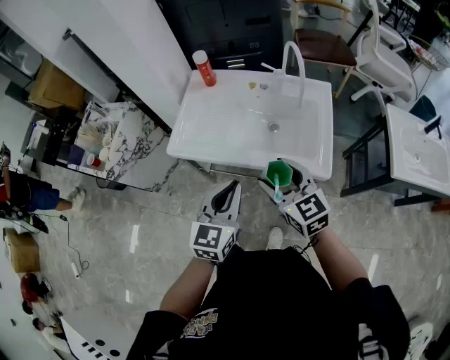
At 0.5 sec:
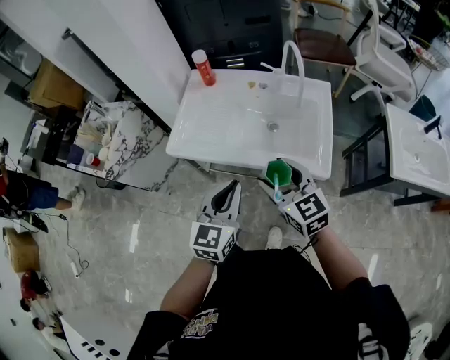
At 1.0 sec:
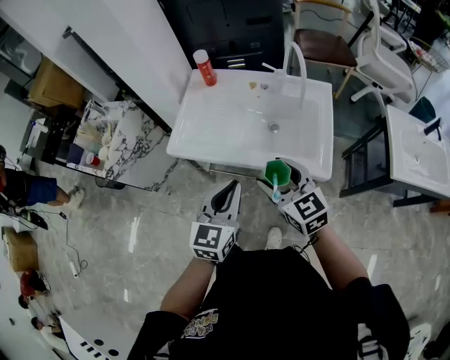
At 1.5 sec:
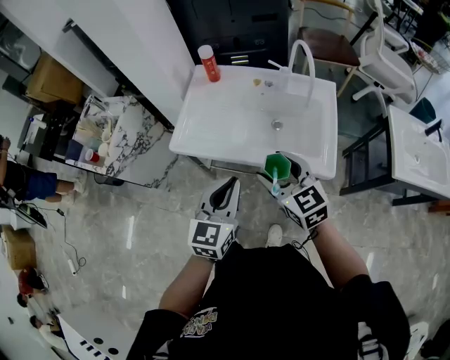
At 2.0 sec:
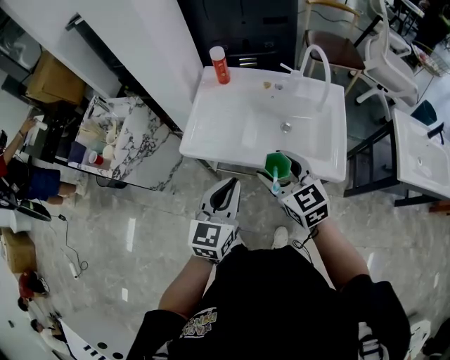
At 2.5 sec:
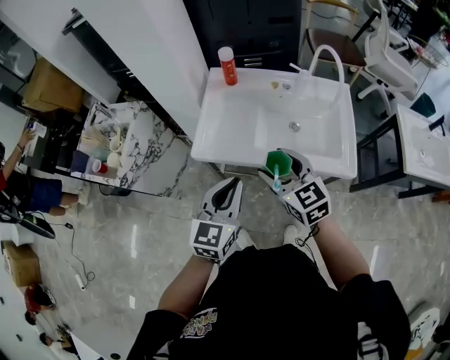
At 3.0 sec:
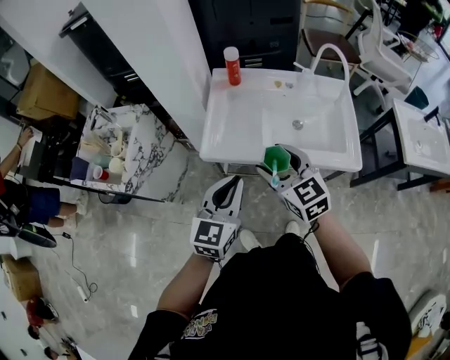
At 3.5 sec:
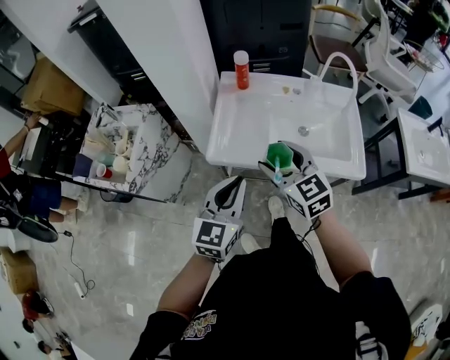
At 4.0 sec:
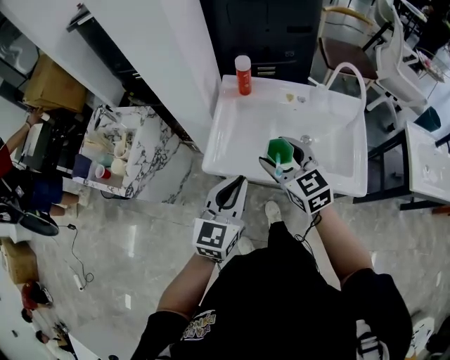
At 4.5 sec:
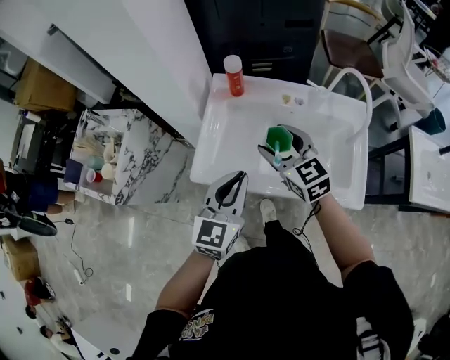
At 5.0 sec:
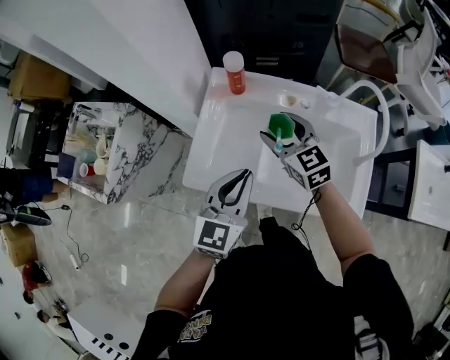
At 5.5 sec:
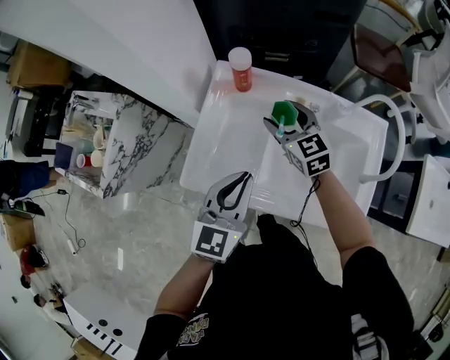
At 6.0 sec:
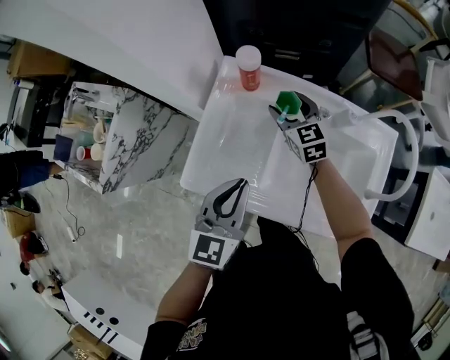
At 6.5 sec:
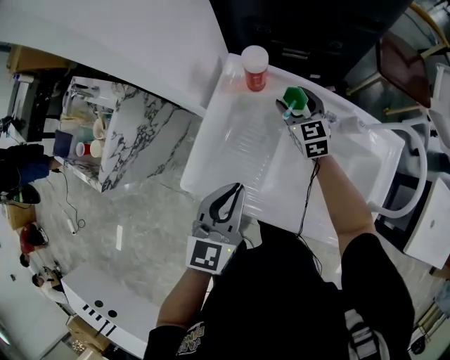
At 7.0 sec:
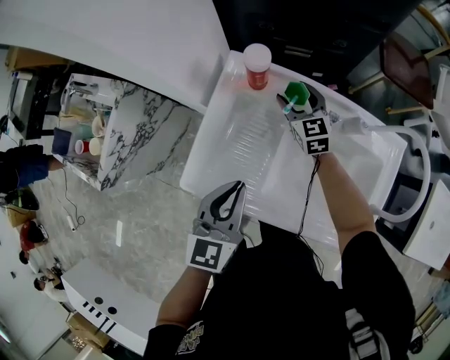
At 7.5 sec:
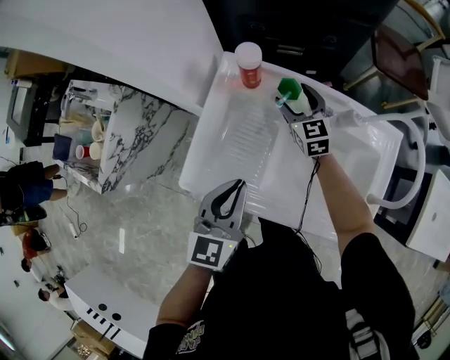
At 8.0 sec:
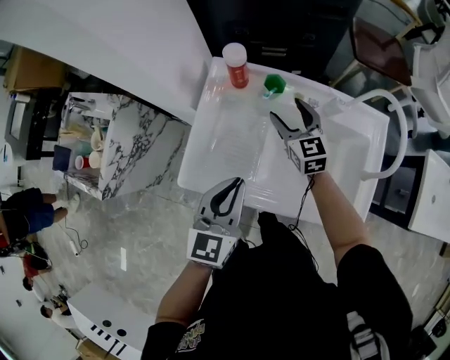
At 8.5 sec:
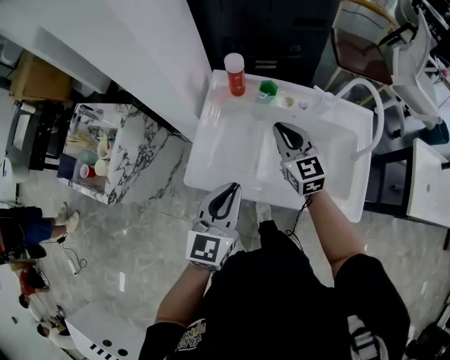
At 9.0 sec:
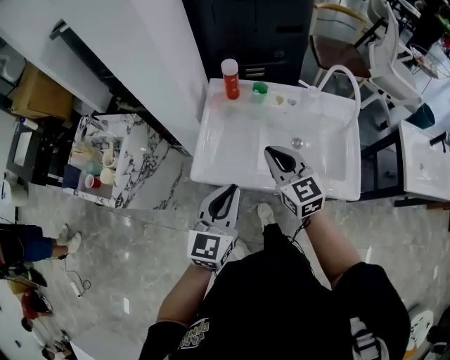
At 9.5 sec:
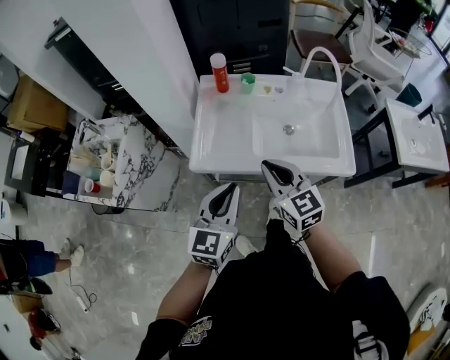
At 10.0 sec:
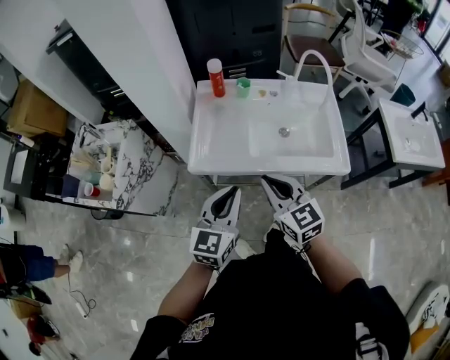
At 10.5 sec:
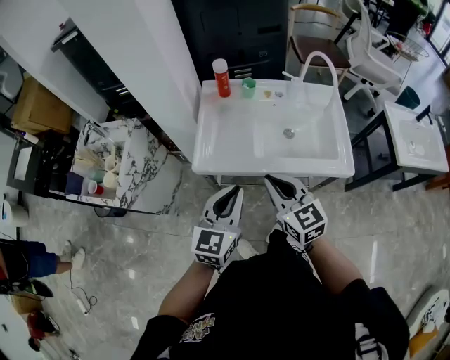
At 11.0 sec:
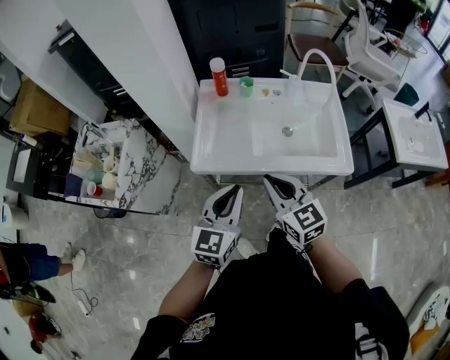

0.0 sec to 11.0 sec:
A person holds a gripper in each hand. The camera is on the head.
0.0 sec to 2.0 sec: The two grippers go roughly 5 cm to the left.
2.0 sec to 3.5 sec: Both grippers move to the left, roughly 10 cm.
3.5 sec to 5.5 sec: The right gripper moves forward, roughly 30 cm. Meanwhile the left gripper goes about 20 cm forward and to the right.
5.5 sec to 7.5 sec: The right gripper heads forward and downward, covering about 10 cm.
7.5 sec to 9.0 sec: The right gripper shifts some 35 cm backward and upward, and closes up. The left gripper moves backward and upward, roughly 15 cm.
9.0 sec to 11.0 sec: The right gripper goes some 15 cm backward; the left gripper heads backward, covering approximately 5 cm.

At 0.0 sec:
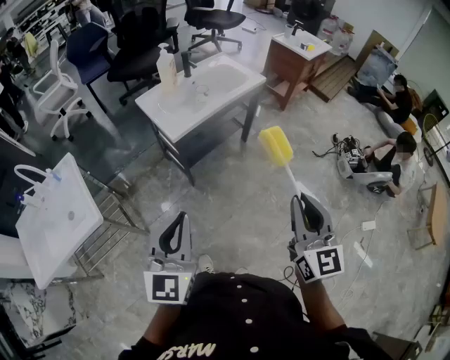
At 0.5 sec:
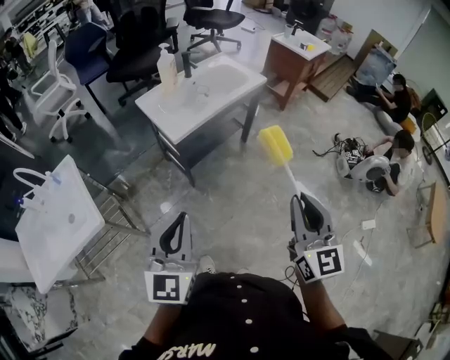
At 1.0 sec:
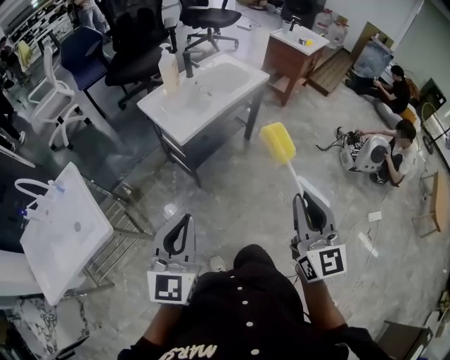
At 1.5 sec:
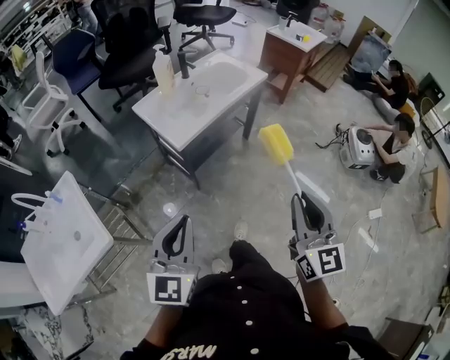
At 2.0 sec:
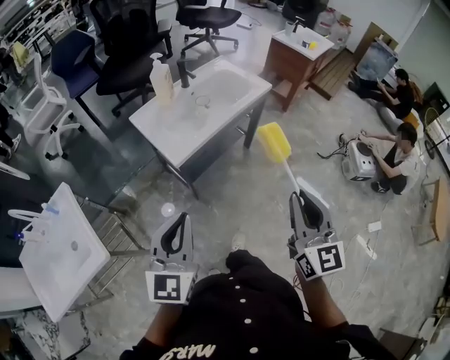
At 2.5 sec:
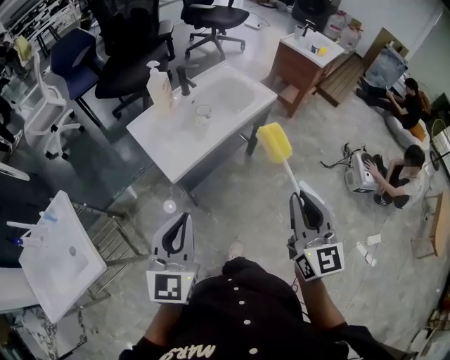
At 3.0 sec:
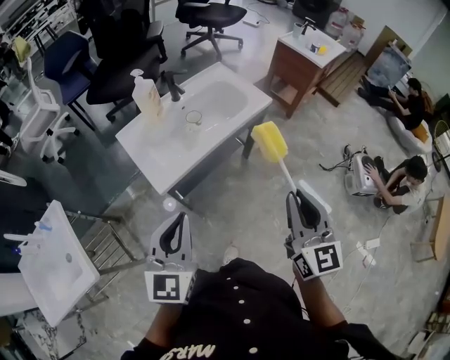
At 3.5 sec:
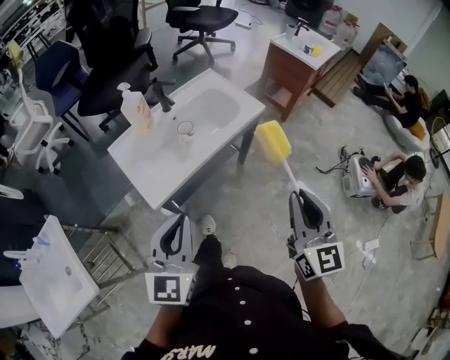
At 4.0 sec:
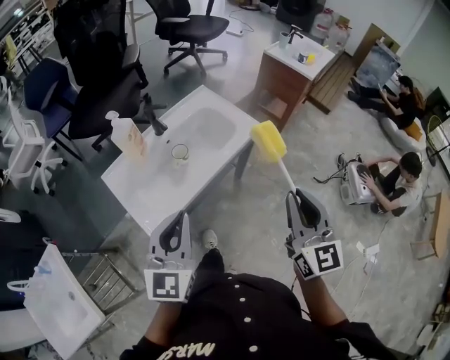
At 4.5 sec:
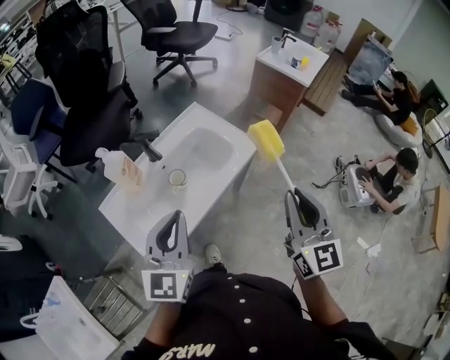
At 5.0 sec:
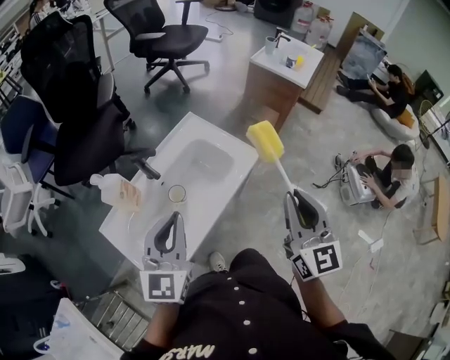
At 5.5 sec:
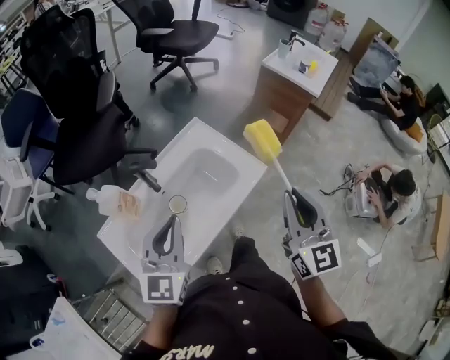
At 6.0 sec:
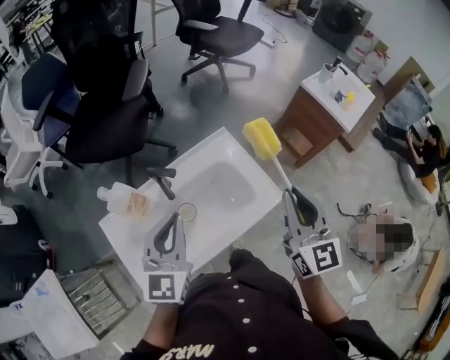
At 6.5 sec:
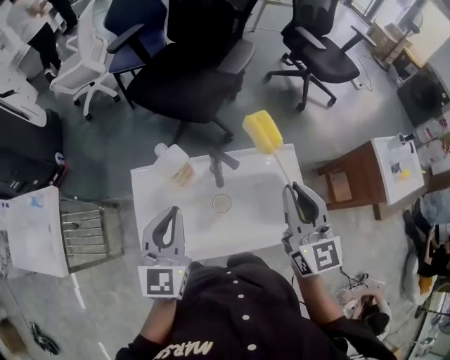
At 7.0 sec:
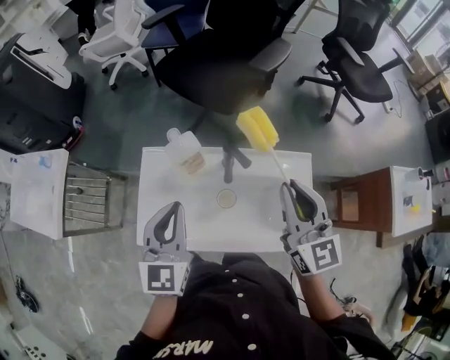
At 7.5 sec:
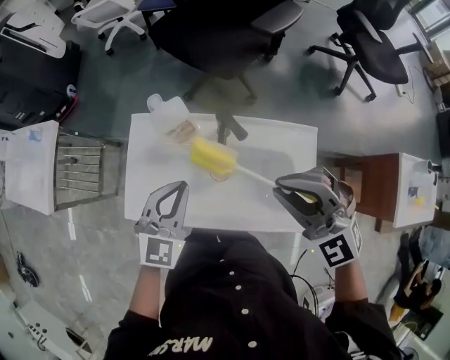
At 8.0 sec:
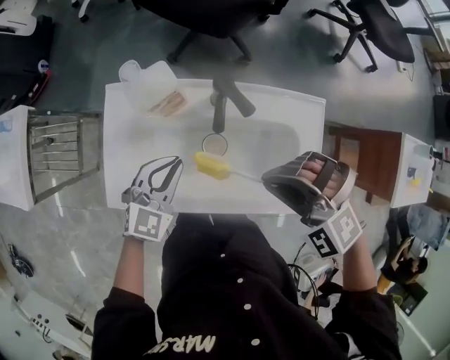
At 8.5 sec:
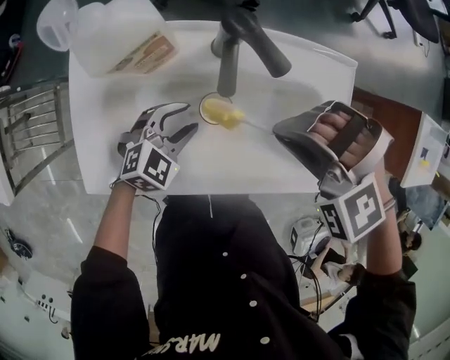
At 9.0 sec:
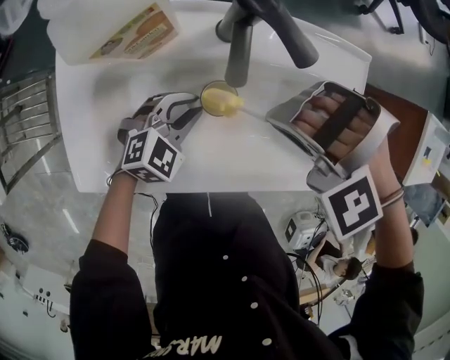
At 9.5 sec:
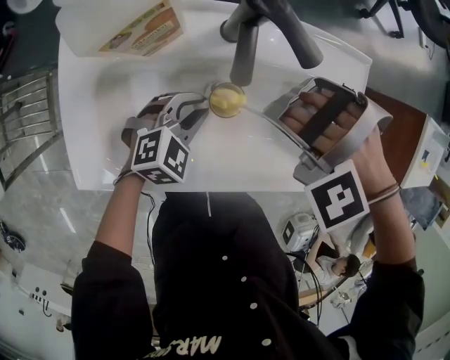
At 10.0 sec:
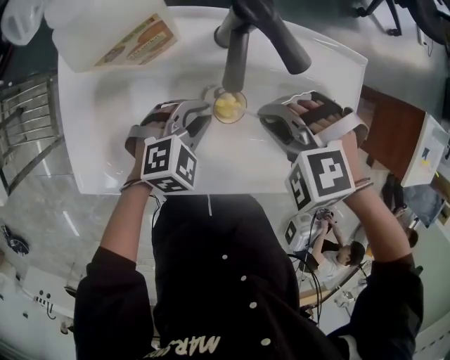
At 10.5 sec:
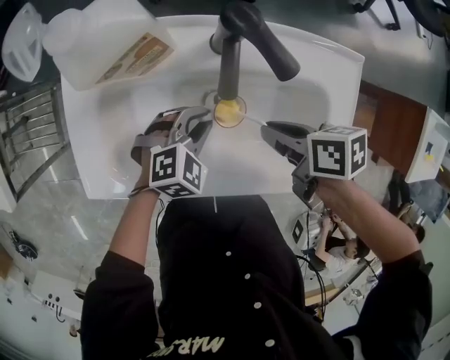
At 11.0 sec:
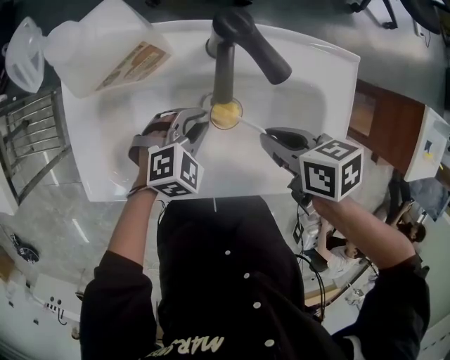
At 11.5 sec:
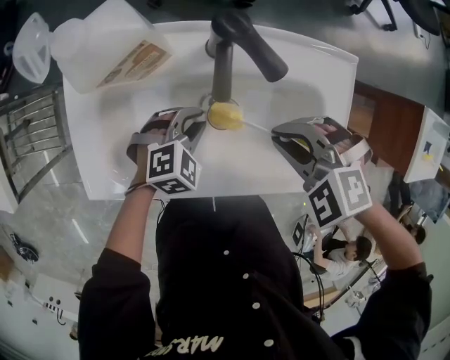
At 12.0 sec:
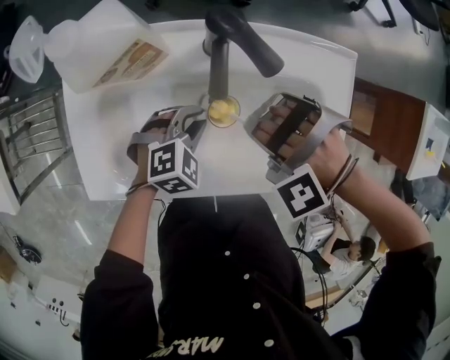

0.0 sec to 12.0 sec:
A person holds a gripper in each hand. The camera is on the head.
0.0 sec to 2.0 sec: The grippers both shift forward by roughly 15 cm.
2.0 sec to 4.0 sec: The grippers both shift forward by roughly 30 cm.
4.0 sec to 6.0 sec: The two grippers go roughly 30 cm forward.
6.0 sec to 8.0 sec: The left gripper heads downward, covering about 20 cm, and rotates some 30 degrees. Meanwhile the right gripper changes place by some 25 cm, and angles its fingers downward, by some 50 degrees.
8.0 sec to 10.0 sec: Both grippers move downward, about 15 cm. The left gripper swivels approximately 30 degrees, and opens, then closes again. Meanwhile the right gripper rotates roughly 30 degrees.
10.0 sec to 12.0 sec: The right gripper swivels some 40 degrees.

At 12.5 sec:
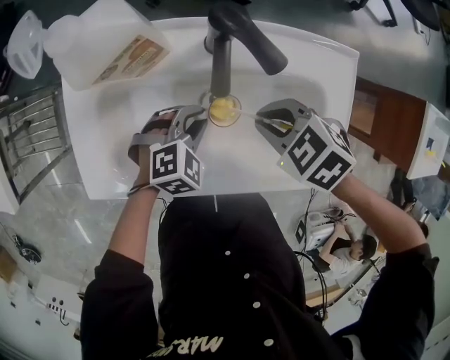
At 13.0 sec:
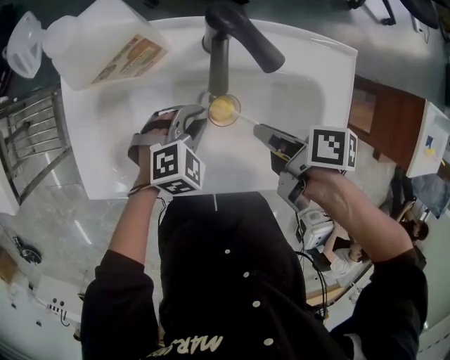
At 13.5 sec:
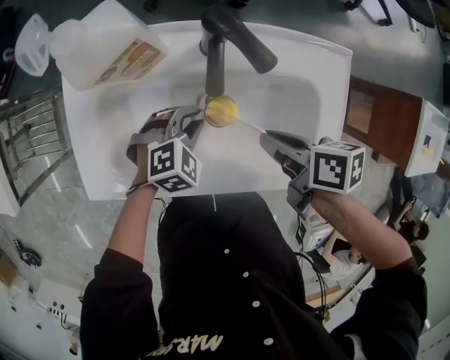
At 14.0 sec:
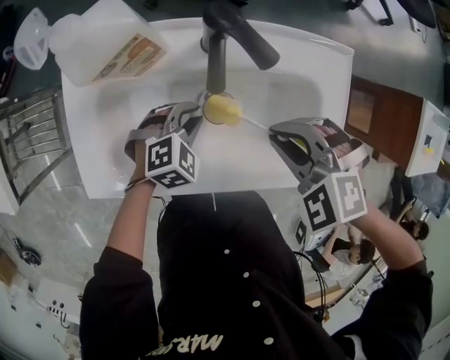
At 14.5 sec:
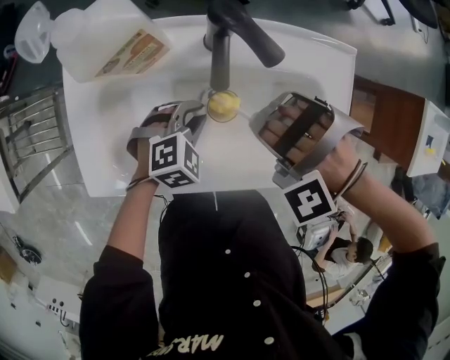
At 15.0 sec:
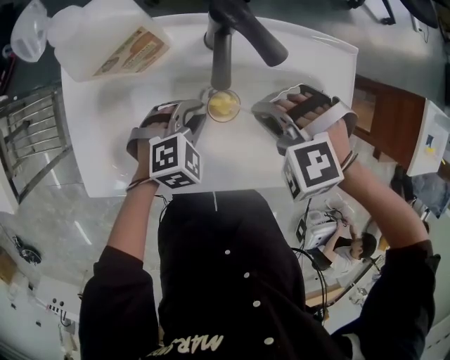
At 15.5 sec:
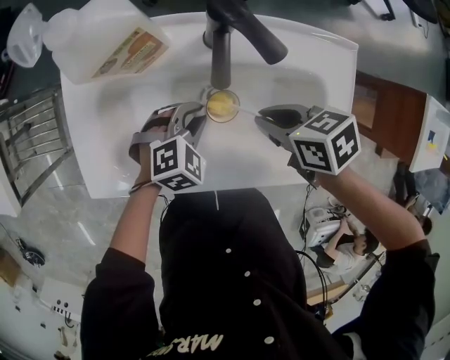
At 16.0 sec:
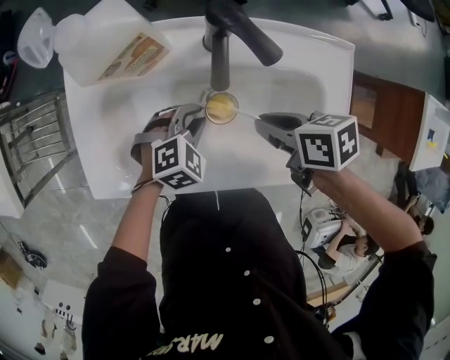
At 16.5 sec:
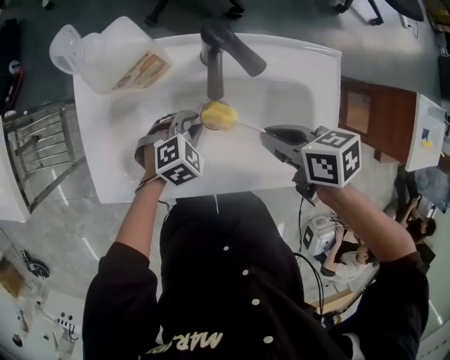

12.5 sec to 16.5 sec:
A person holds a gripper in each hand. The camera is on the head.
12.5 sec to 14.5 sec: The right gripper rolls counterclockwise, seen from behind, by approximately 80 degrees.
14.5 sec to 16.5 sec: The right gripper rotates around the line of its fingers by roughly 130 degrees, clockwise from behind.
